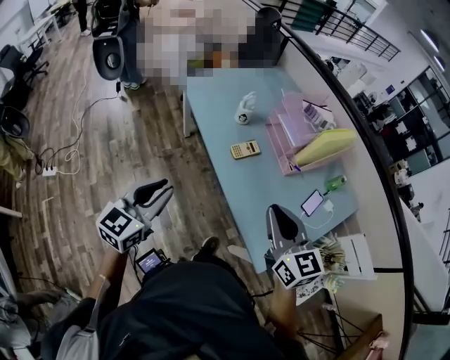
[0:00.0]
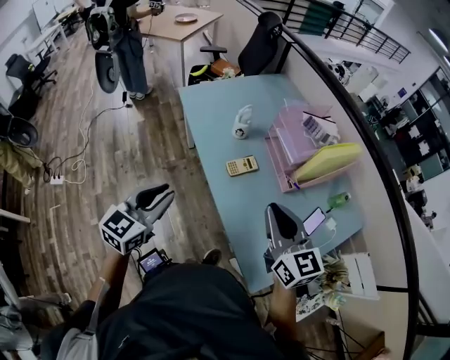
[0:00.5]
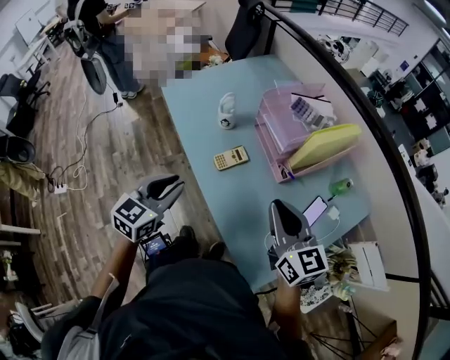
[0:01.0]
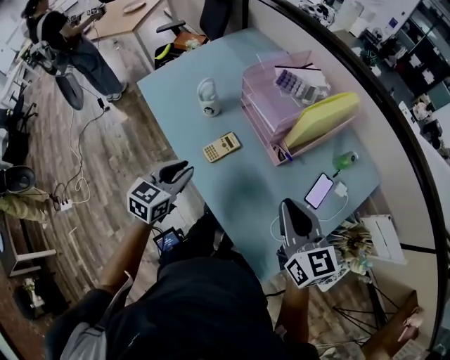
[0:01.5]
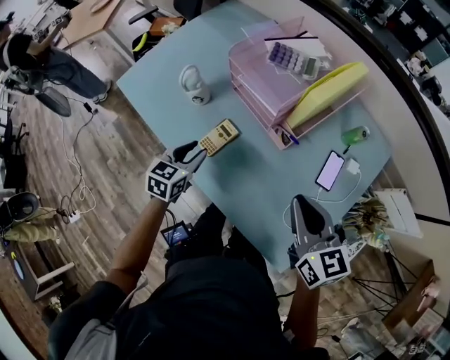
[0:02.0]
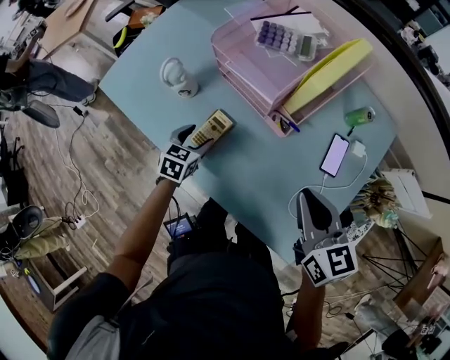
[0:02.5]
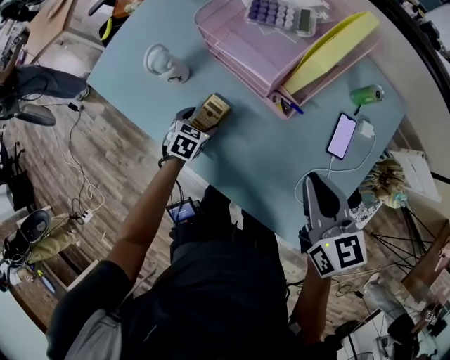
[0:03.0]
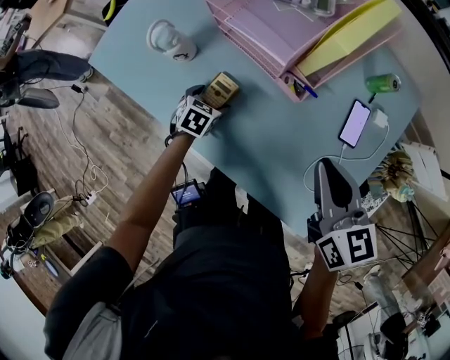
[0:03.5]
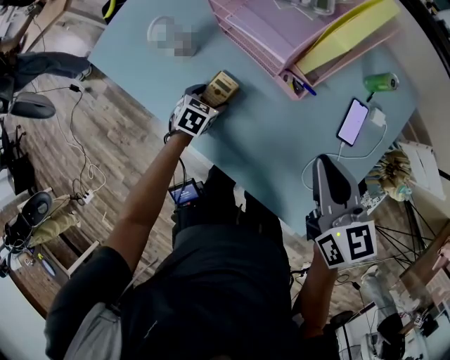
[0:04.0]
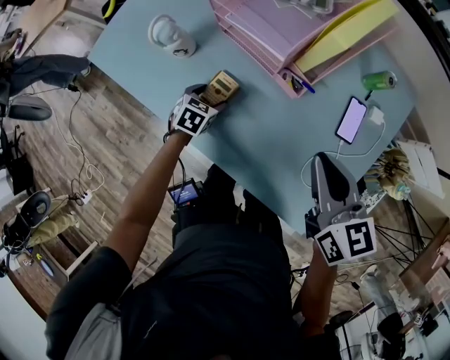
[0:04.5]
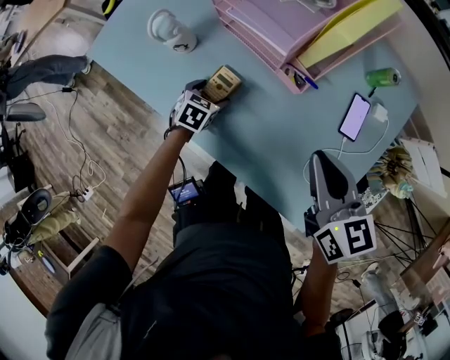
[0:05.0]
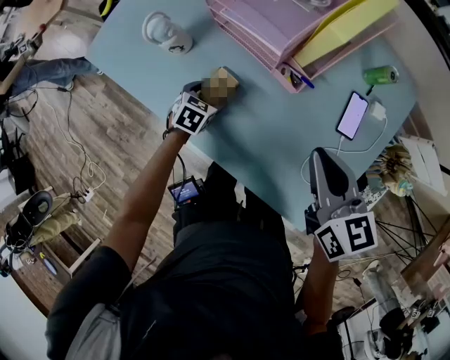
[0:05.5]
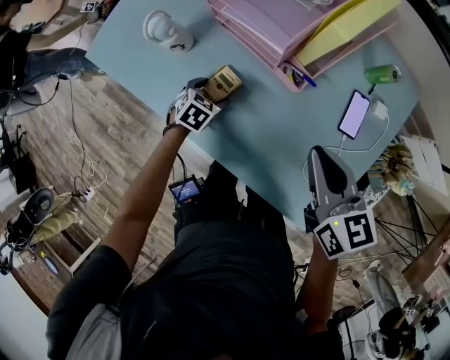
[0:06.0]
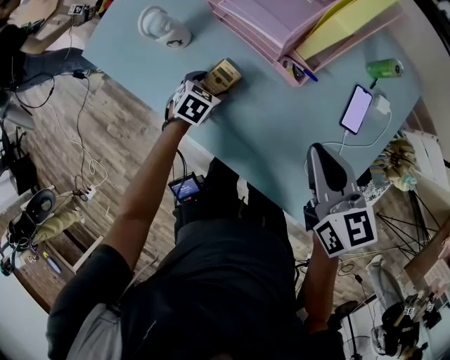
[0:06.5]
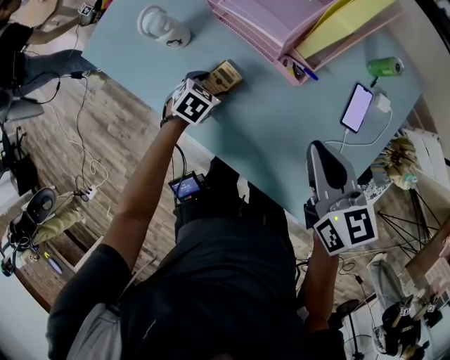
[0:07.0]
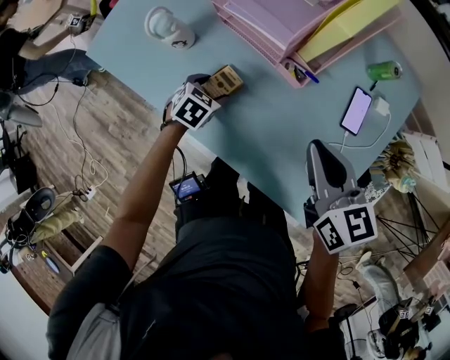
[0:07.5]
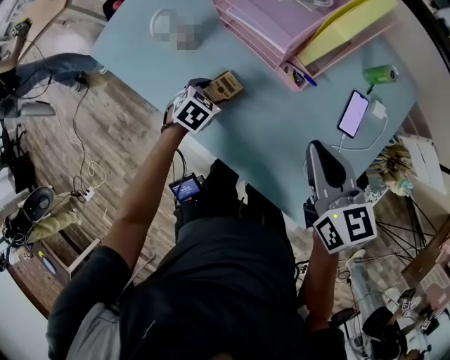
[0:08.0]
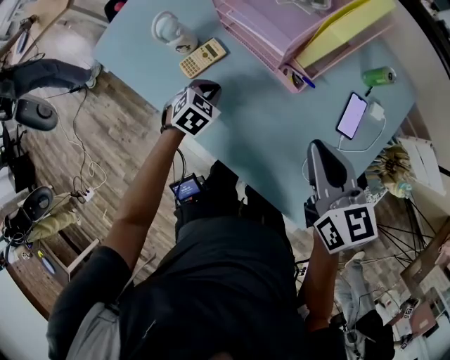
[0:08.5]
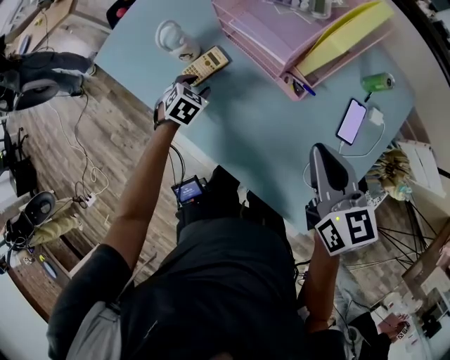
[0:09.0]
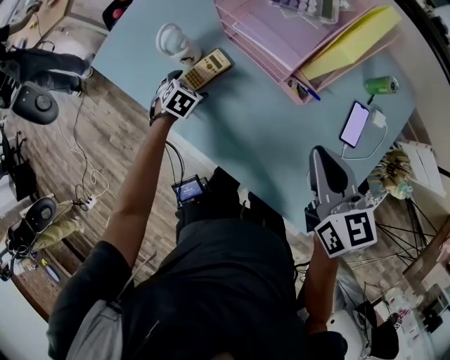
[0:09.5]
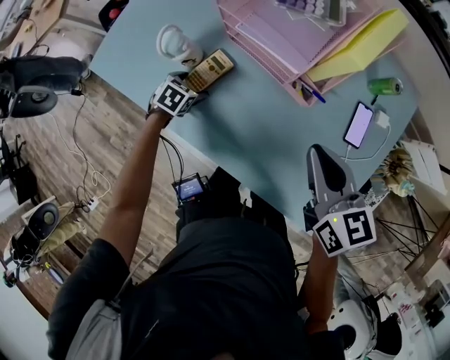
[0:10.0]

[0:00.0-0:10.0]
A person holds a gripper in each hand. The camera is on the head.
0:00.0 to 0:02.0: The right gripper moves forward, to the right and downward, roughly 25 cm, and swivels some 20 degrees. Meanwhile the left gripper shifts some 40 cm forward, downward and to the right, and rotates roughly 30 degrees.
0:02.0 to 0:04.0: The left gripper moves downward, approximately 15 cm, swivels roughly 30 degrees, and opens; the right gripper shifts by roughly 5 cm.
0:04.0 to 0:08.0: There are only small adjustments of the grippers.
0:08.0 to 0:10.0: The right gripper ends up approximately 5 cm from where it was; the left gripper moves to the left and forward, some 15 cm, and closes, then reopens.

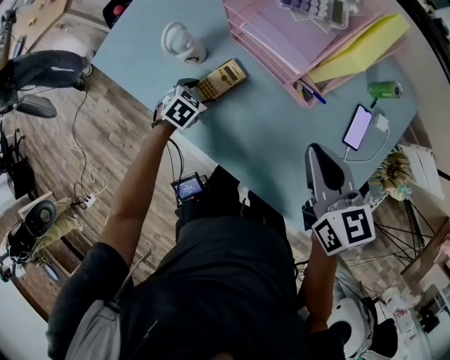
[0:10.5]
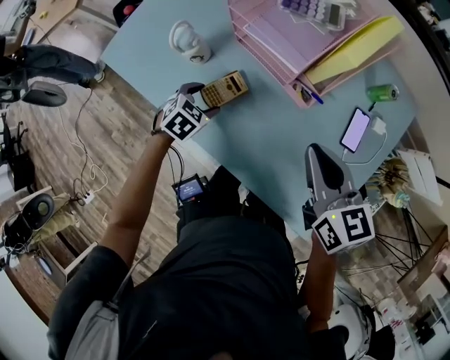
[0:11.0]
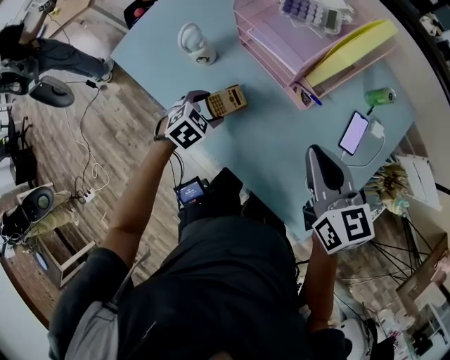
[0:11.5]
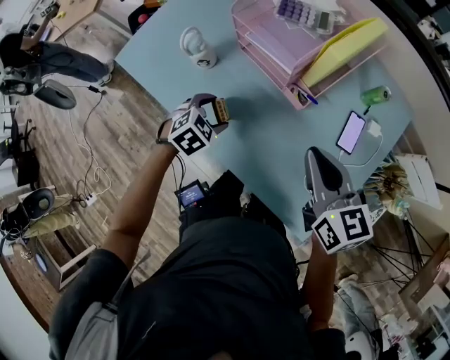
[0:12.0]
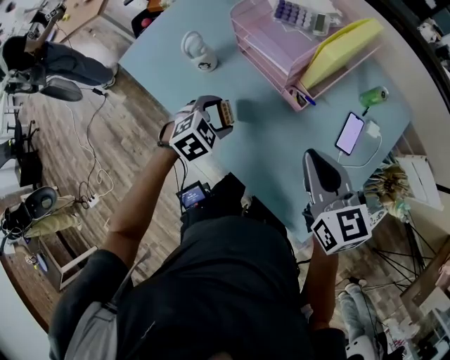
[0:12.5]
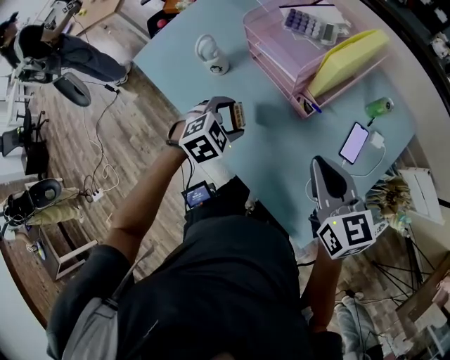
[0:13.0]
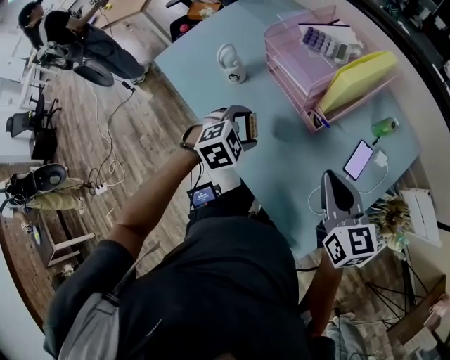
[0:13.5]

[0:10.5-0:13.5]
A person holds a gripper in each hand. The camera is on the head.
0:10.5 to 0:12.0: The left gripper is displaced upward, backward and to the right by approximately 15 cm, while the right gripper shifts by some 5 cm.
0:12.0 to 0:13.5: The left gripper goes approximately 10 cm upward and to the right.

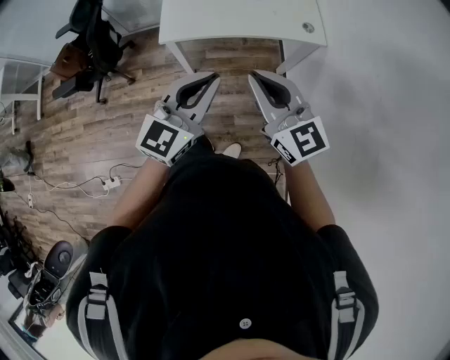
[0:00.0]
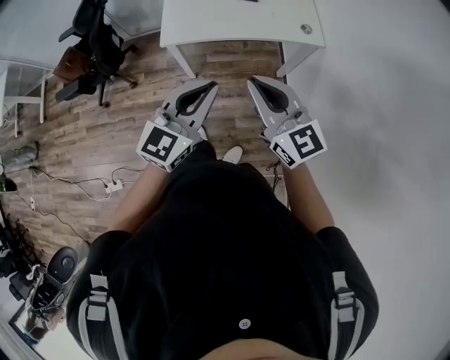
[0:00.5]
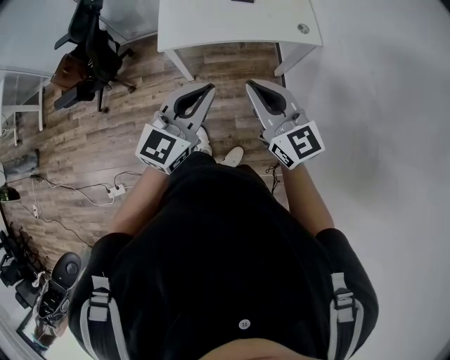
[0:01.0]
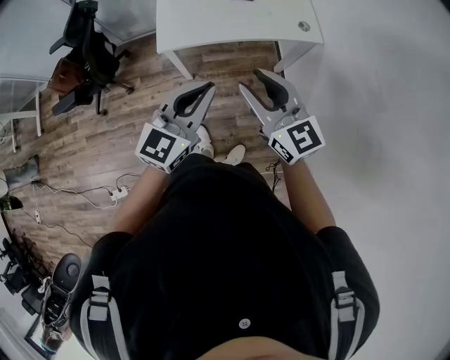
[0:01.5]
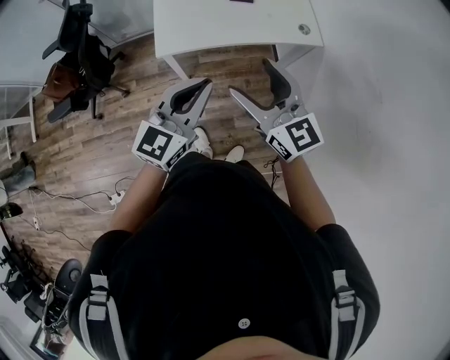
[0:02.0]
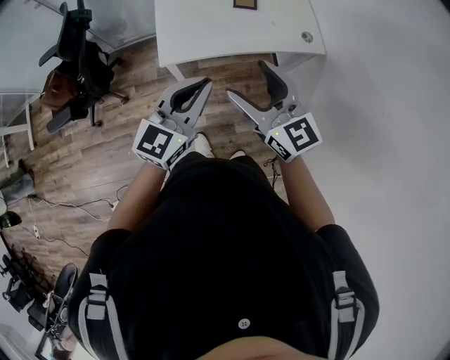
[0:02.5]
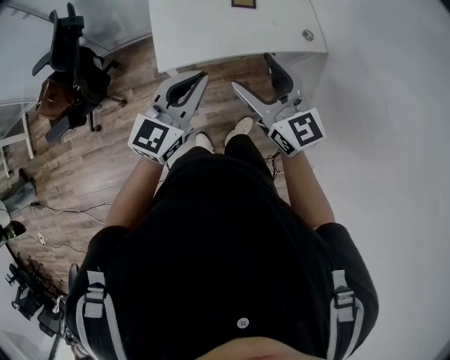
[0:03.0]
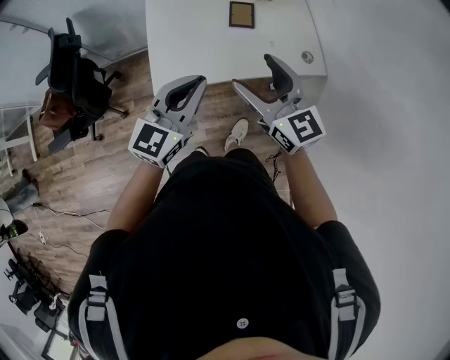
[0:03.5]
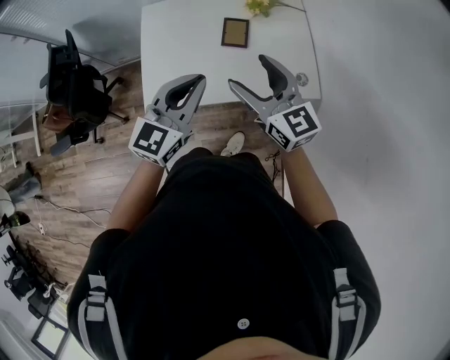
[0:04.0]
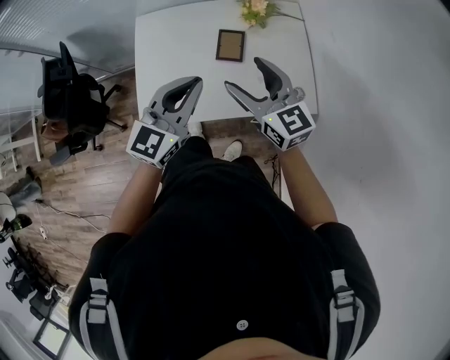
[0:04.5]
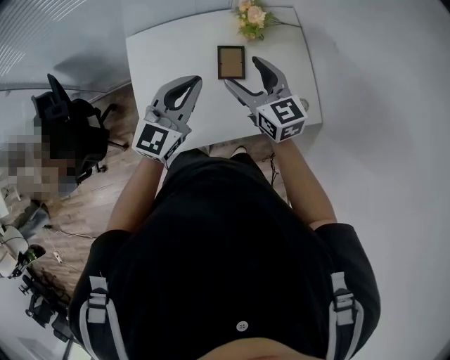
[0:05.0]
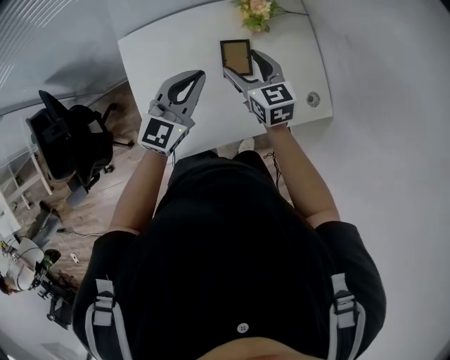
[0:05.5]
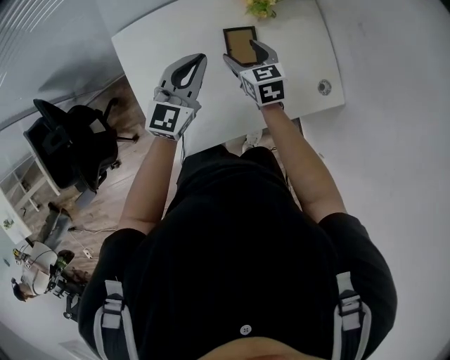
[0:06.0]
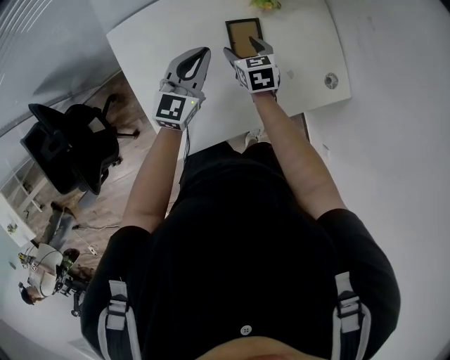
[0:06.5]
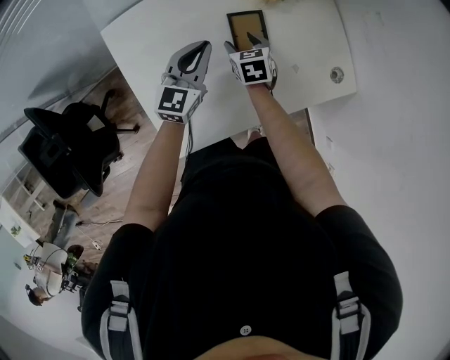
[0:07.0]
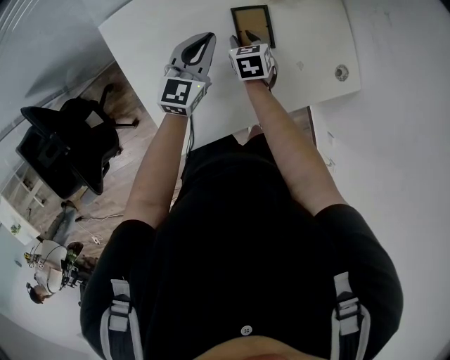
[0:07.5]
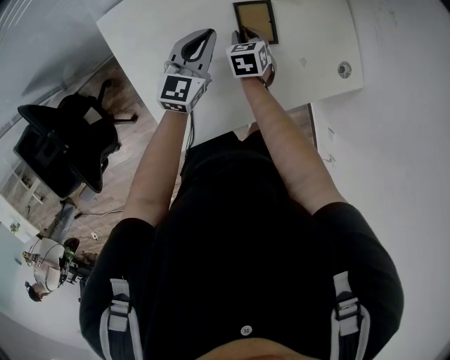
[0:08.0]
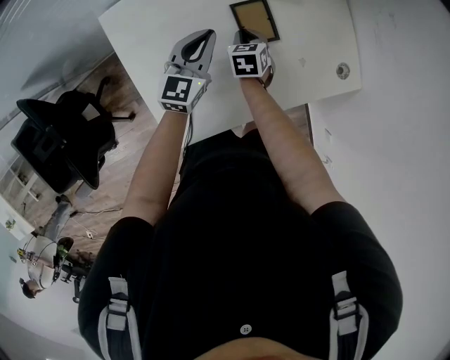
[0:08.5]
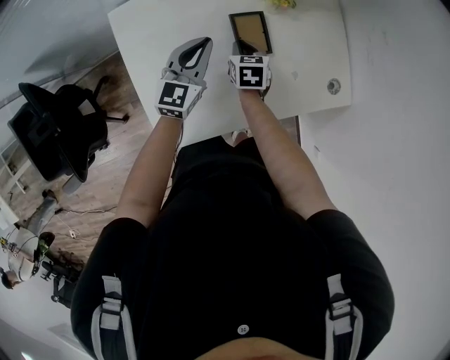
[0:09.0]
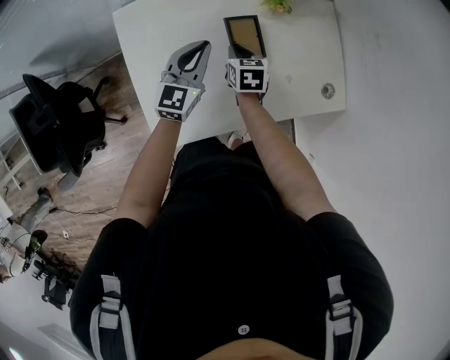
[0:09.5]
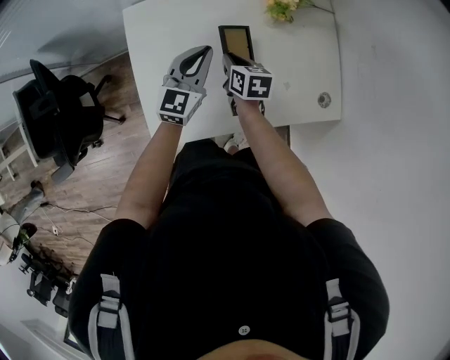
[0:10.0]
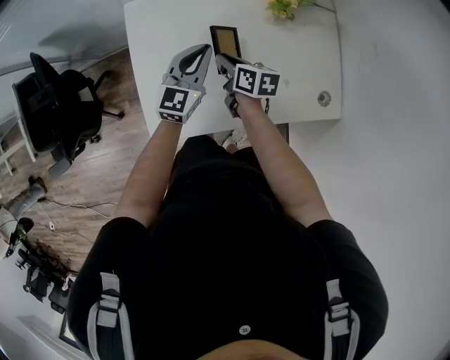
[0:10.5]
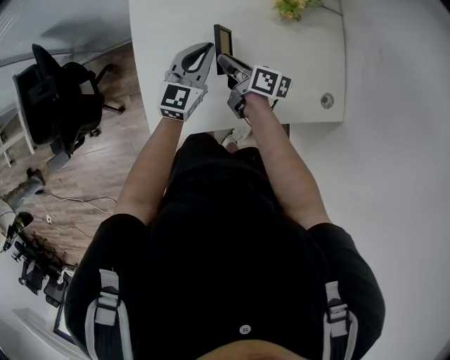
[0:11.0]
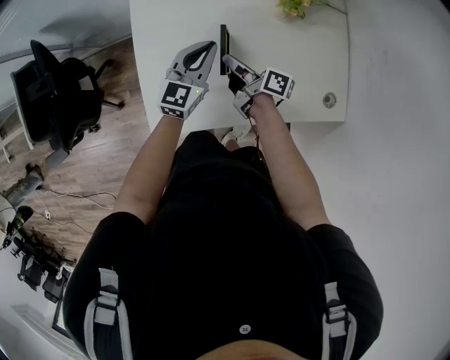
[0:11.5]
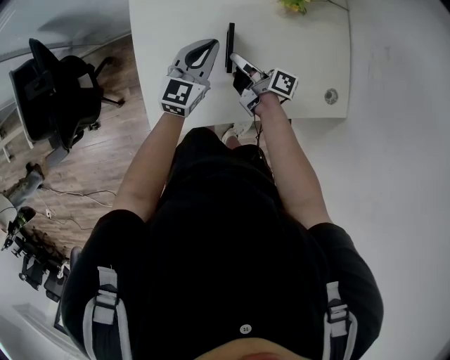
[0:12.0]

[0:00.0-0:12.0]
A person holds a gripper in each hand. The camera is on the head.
0:00.0 to 0:02.0: The two grippers go some 10 cm forward and to the left. The right gripper opens.
0:02.0 to 0:04.0: Both grippers move forward, approximately 30 cm.
0:04.0 to 0:06.0: Both grippers move forward and downward, approximately 35 cm. The right gripper points its fingers roughly 30 degrees further downward.
0:06.0 to 0:08.0: The two grippers go about 15 cm downward. The right gripper turns by about 20 degrees, and closes its fingers.
0:08.0 to 0:10.0: Both grippers move upward, approximately 10 cm. The right gripper turns by approximately 30 degrees.
0:10.0 to 0:12.0: The right gripper points its fingers approximately 30 degrees further upward.

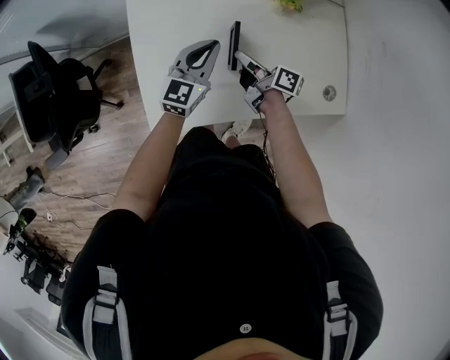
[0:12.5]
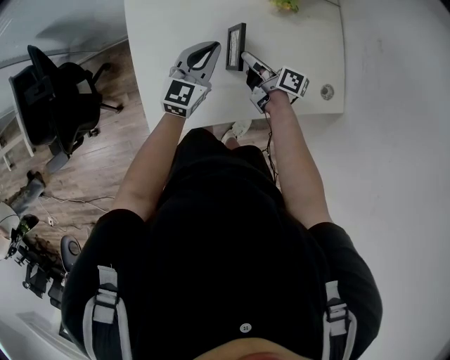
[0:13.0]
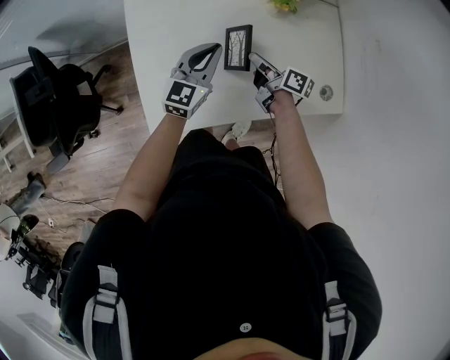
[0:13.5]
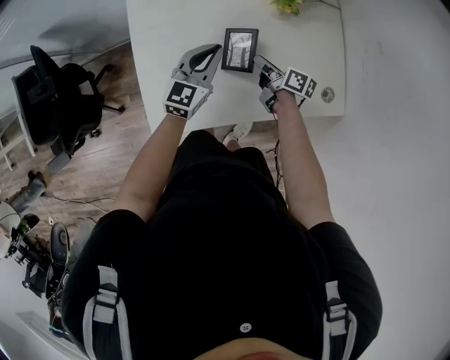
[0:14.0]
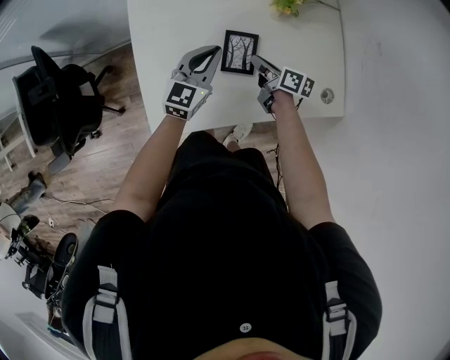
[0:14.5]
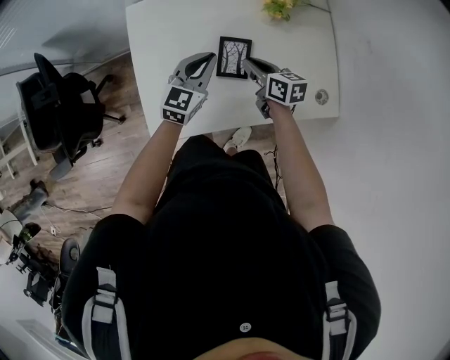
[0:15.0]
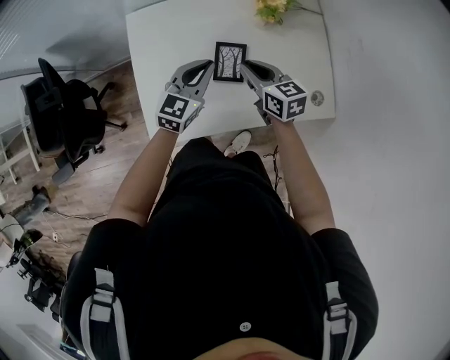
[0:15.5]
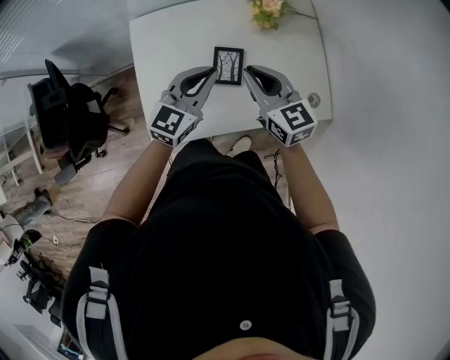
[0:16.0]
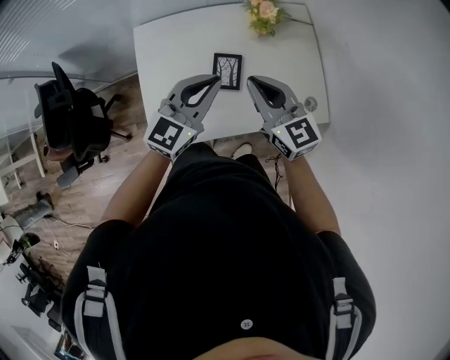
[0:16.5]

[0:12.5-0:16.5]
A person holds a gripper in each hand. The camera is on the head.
0:12.5 to 0:14.5: The right gripper travels to the right by approximately 5 cm.
0:14.5 to 0:16.5: The left gripper is displaced upward and backward by approximately 20 cm. The right gripper heads upward, covering about 30 cm, and rolls counterclockwise, seen from behind, by approximately 60 degrees.
